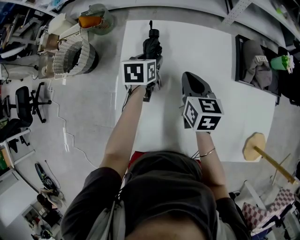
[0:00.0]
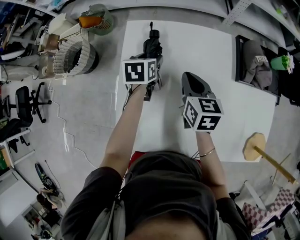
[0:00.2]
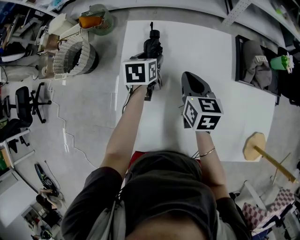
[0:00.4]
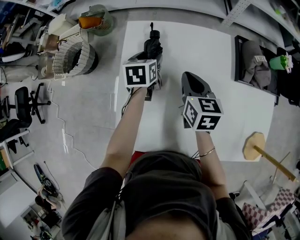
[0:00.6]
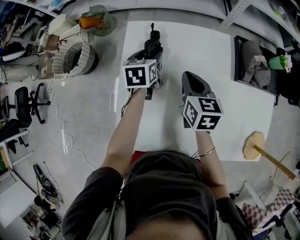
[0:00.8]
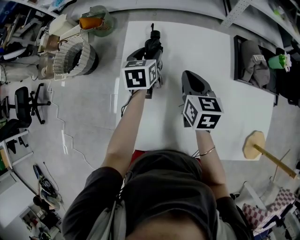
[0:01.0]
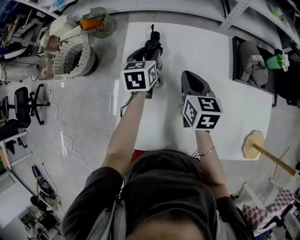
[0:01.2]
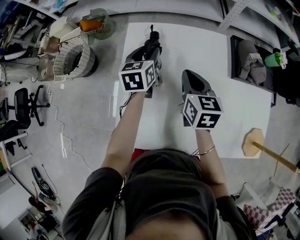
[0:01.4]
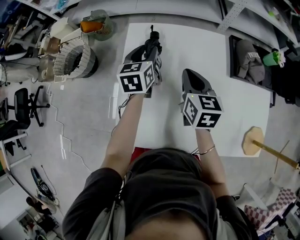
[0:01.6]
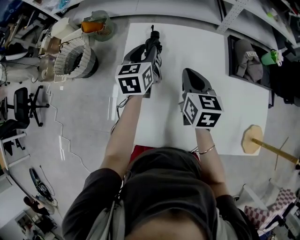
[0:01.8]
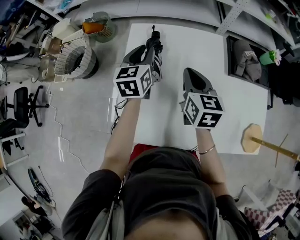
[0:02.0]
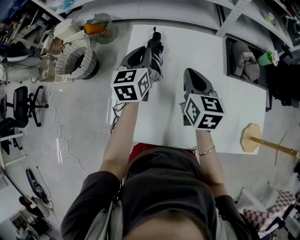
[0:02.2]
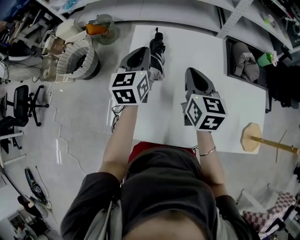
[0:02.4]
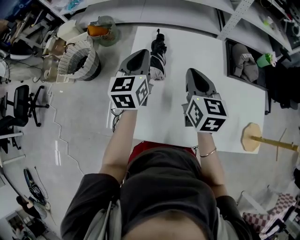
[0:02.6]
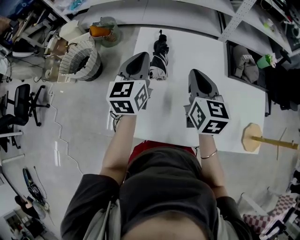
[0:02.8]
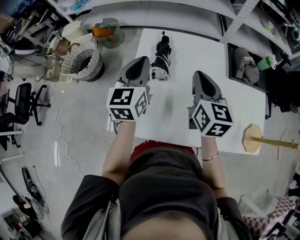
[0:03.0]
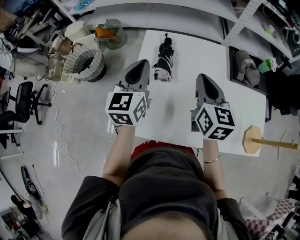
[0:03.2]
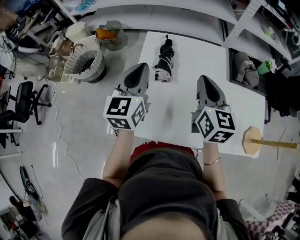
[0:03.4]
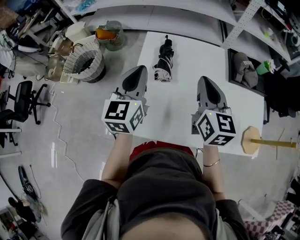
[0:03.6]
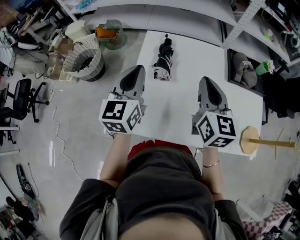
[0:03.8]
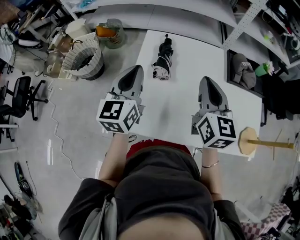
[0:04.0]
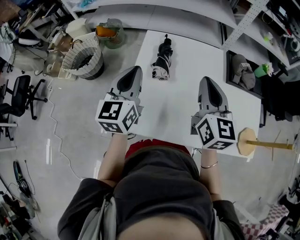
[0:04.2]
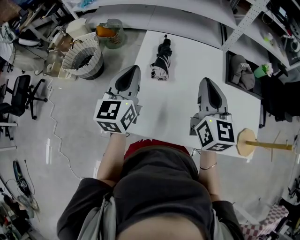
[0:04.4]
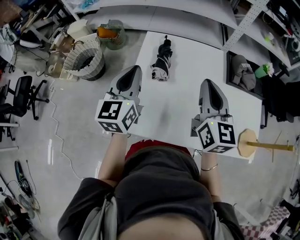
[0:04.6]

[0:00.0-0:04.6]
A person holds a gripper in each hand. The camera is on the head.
0:00.0 to 0:01.6: The left gripper moves upward, some 10 cm, and swivels roughly 20 degrees.
0:01.6 to 0:03.0: The left gripper moves backward and upward, about 20 cm, and closes up, while the right gripper heads upward and backward, covering approximately 10 cm.
0:03.0 to 0:04.6: The right gripper shifts approximately 5 cm upward, while the left gripper travels backward by approximately 5 cm.

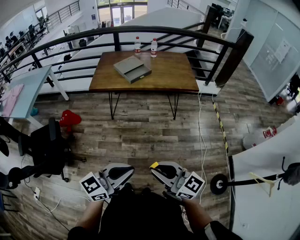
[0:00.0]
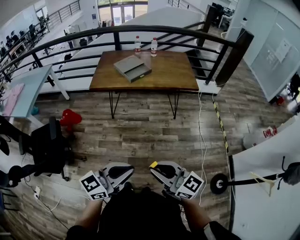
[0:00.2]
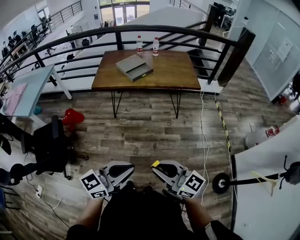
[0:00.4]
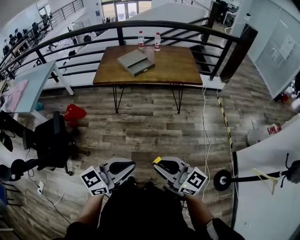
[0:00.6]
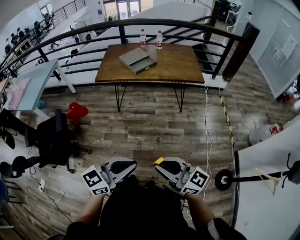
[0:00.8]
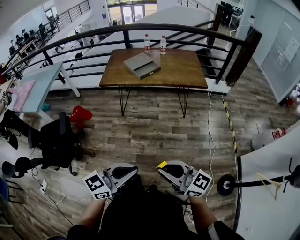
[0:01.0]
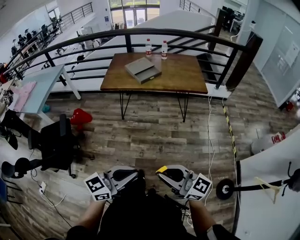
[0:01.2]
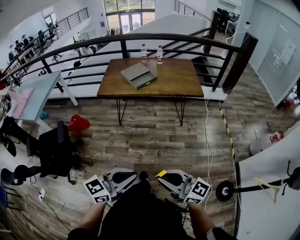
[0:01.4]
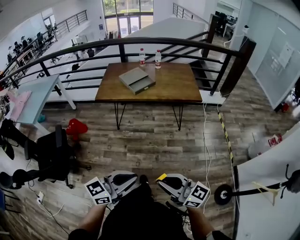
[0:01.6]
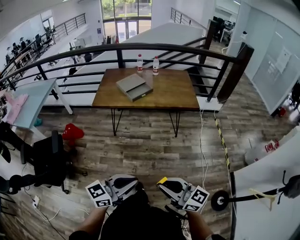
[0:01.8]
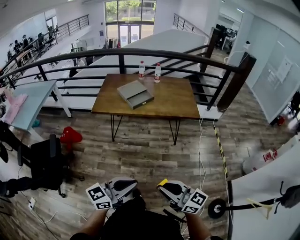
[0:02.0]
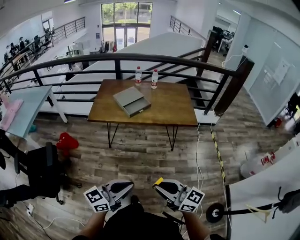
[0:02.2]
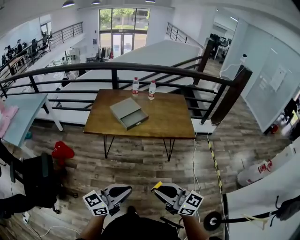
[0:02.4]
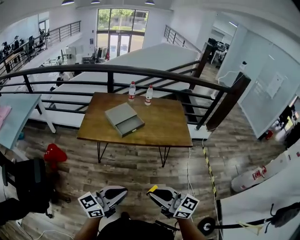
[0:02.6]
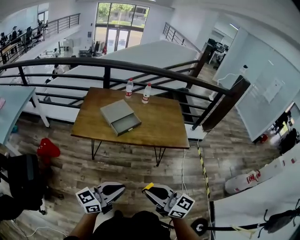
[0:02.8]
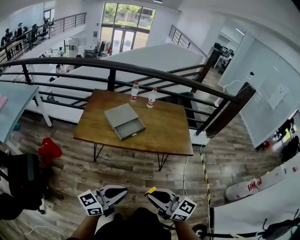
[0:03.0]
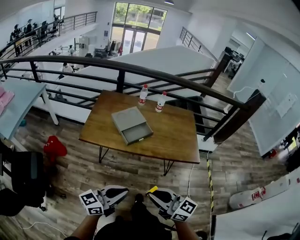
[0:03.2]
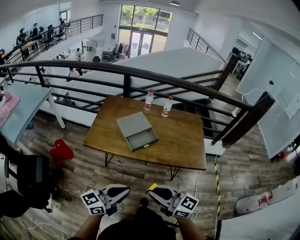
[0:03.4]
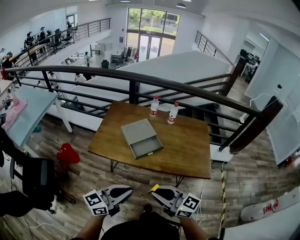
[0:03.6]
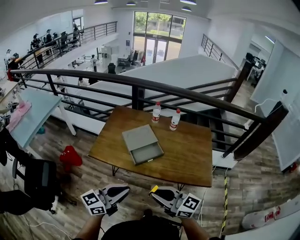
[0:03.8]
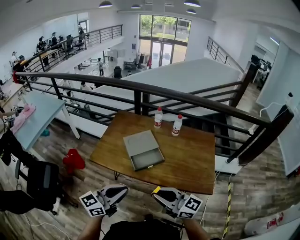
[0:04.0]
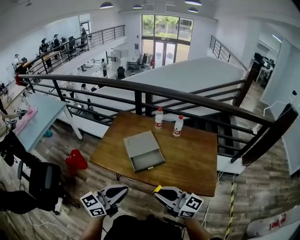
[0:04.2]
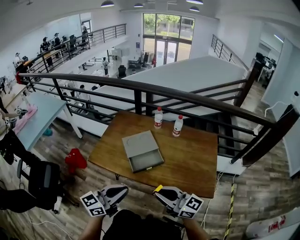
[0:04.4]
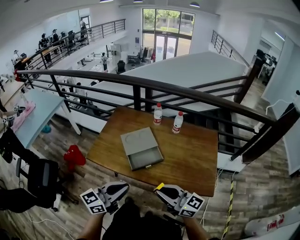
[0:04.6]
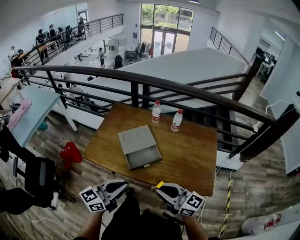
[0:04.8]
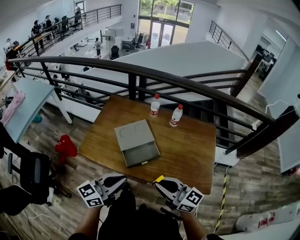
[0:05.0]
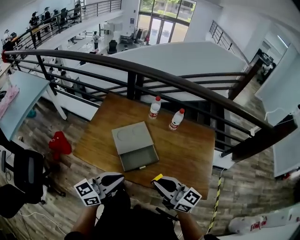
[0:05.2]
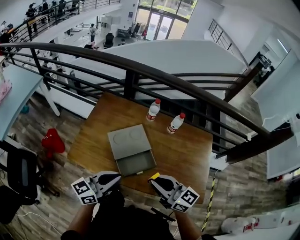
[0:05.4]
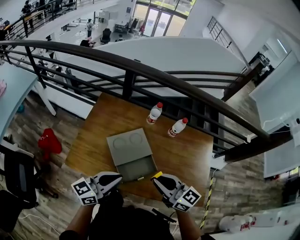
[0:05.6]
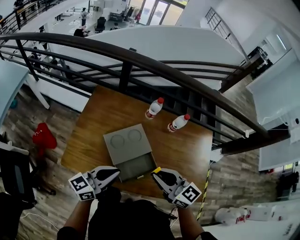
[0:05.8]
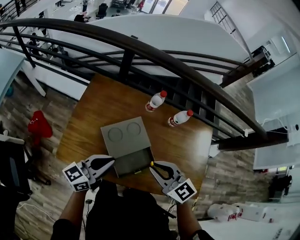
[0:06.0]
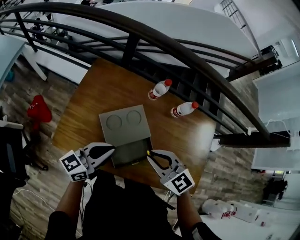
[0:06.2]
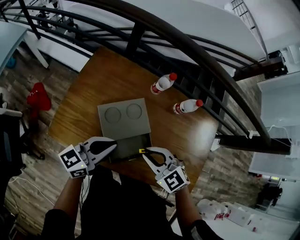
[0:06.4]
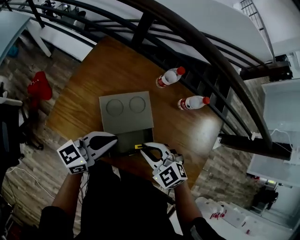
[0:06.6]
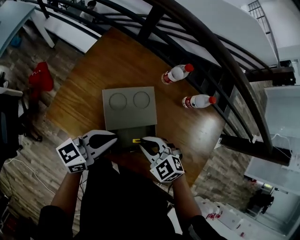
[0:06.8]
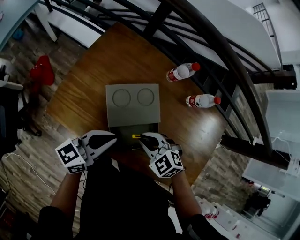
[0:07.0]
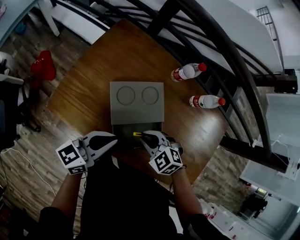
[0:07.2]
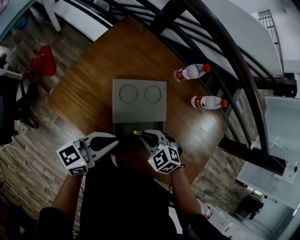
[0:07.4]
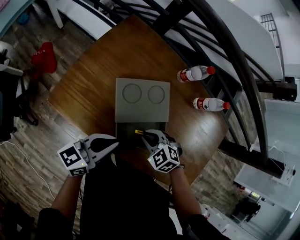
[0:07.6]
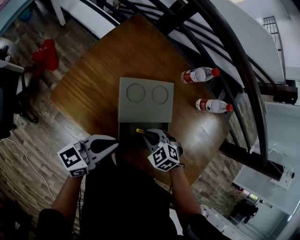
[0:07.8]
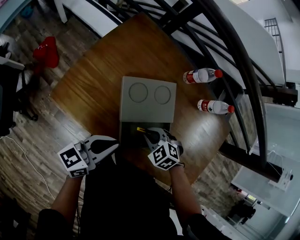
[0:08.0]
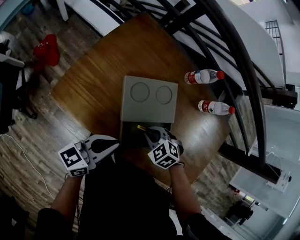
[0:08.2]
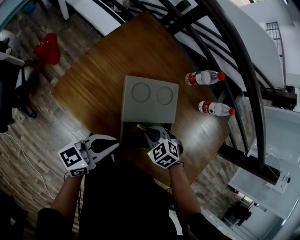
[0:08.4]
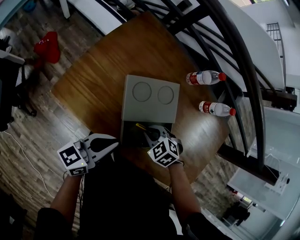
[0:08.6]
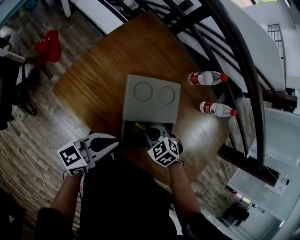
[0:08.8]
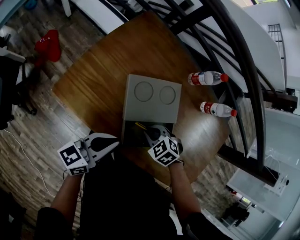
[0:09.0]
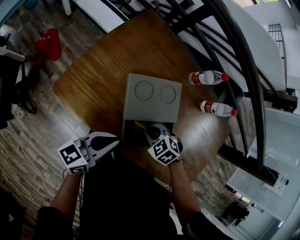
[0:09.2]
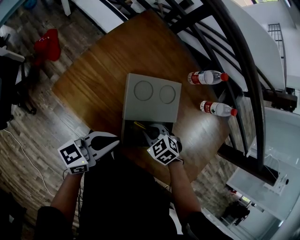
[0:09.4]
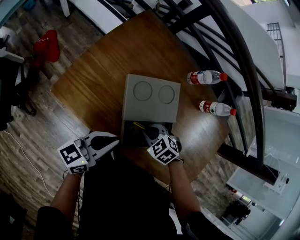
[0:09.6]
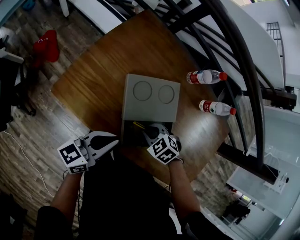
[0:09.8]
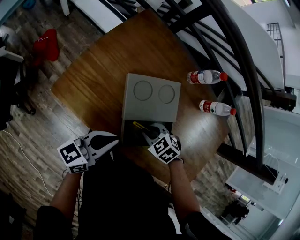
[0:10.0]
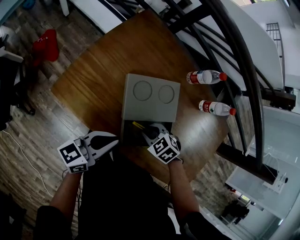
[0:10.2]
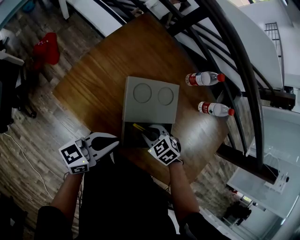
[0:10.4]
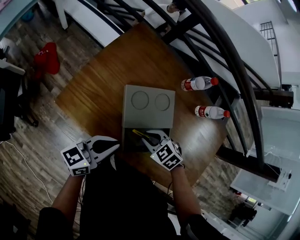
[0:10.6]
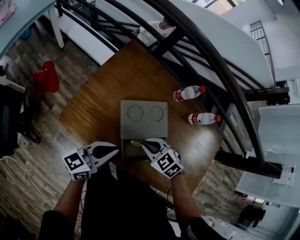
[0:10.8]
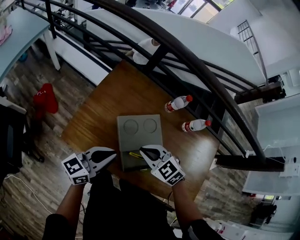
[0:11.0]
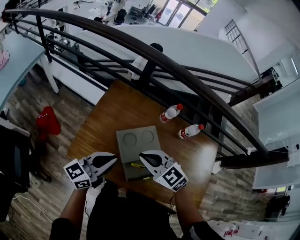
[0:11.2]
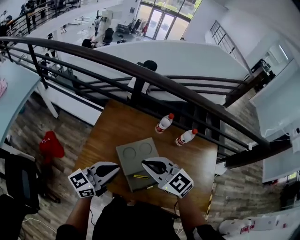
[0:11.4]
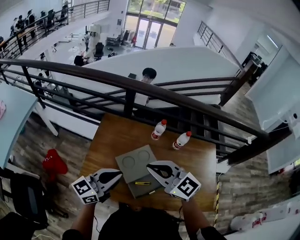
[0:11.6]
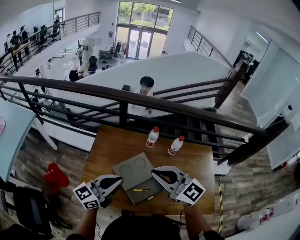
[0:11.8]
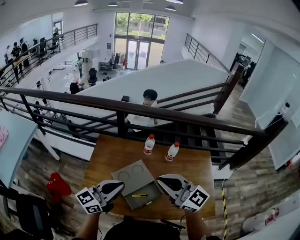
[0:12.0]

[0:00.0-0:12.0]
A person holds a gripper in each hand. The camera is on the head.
0:00.0 to 0:01.6: The grippers move only a little.
0:01.6 to 0:03.0: The two grippers go about 30 cm forward.
0:03.0 to 0:04.4: Both grippers move forward, some 25 cm. The left gripper turns by roughly 20 degrees.
0:04.4 to 0:06.0: The two grippers go approximately 30 cm forward. The right gripper points its fingers about 30 degrees further downward.
0:06.0 to 0:07.6: The left gripper goes roughly 10 cm downward and backward; the right gripper is displaced downward by about 20 cm, and tilts its fingers about 40 degrees downward.
0:07.6 to 0:10.4: The grippers make only small movements.
0:10.4 to 0:12.0: The right gripper moves upward, approximately 40 cm, angles its fingers upward, by approximately 70 degrees, and closes. The left gripper is displaced upward by about 25 cm, and rotates approximately 30 degrees.

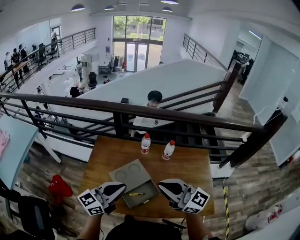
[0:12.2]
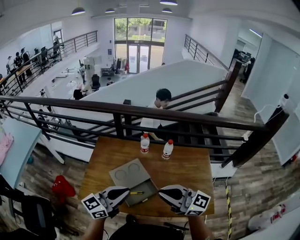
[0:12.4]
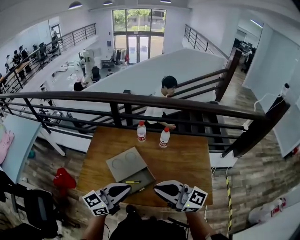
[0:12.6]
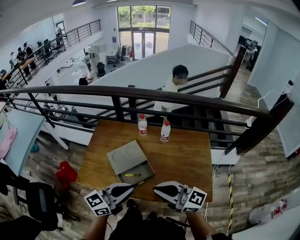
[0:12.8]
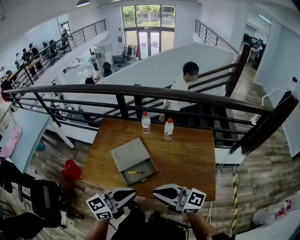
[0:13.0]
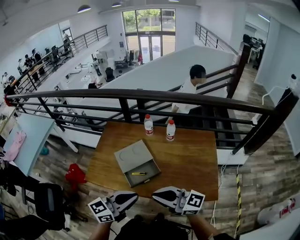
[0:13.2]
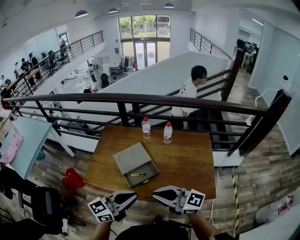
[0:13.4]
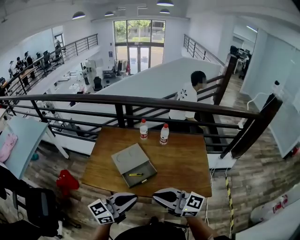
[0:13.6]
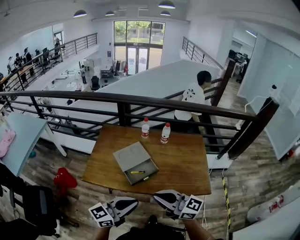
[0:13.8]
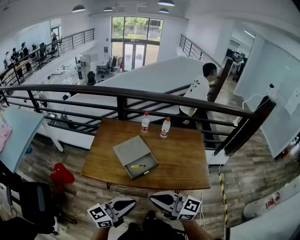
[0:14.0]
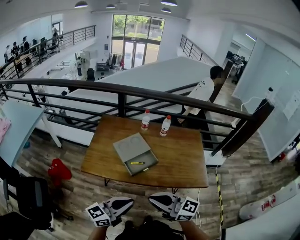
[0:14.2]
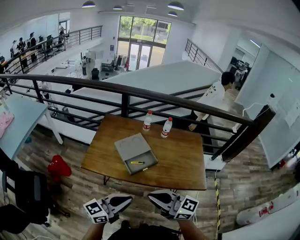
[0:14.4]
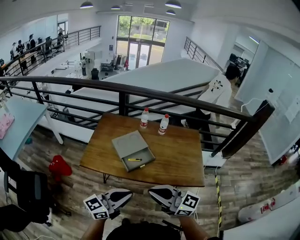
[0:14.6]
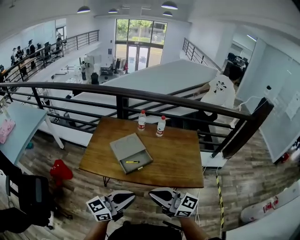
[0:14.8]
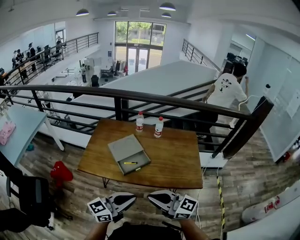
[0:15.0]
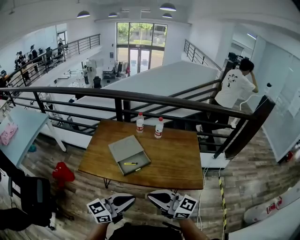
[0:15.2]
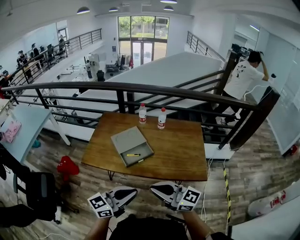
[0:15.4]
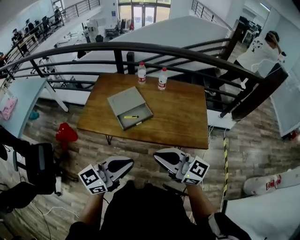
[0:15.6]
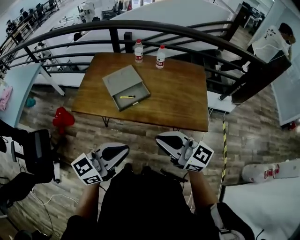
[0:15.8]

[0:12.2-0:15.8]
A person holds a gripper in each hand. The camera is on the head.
0:12.2 to 0:14.0: Both grippers move backward, about 25 cm.
0:14.0 to 0:15.8: Both grippers travel together to the right, some 10 cm.

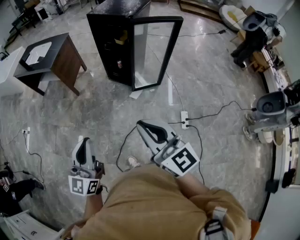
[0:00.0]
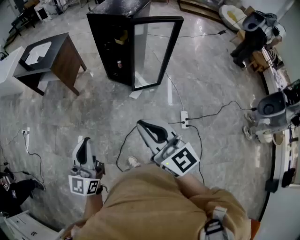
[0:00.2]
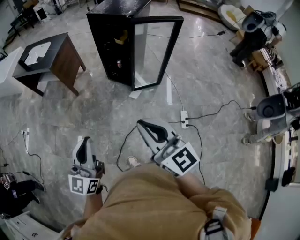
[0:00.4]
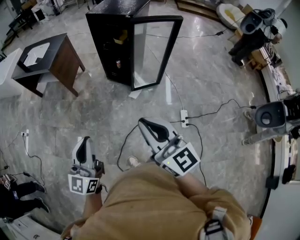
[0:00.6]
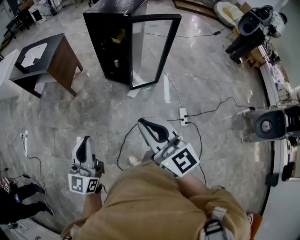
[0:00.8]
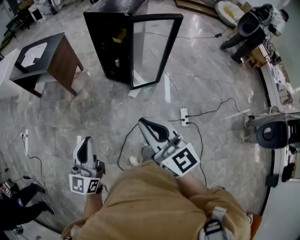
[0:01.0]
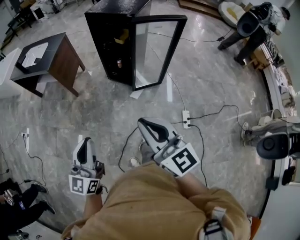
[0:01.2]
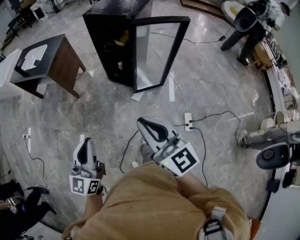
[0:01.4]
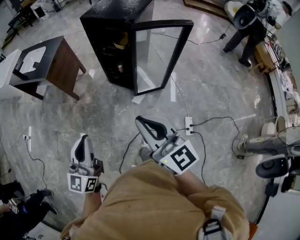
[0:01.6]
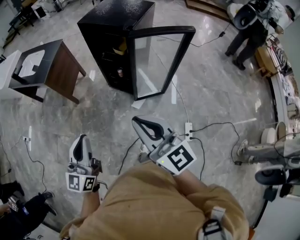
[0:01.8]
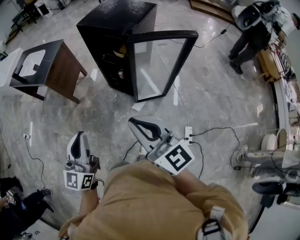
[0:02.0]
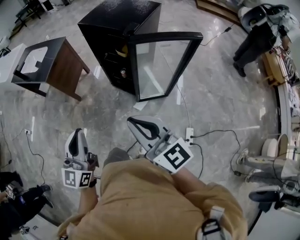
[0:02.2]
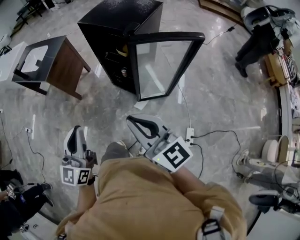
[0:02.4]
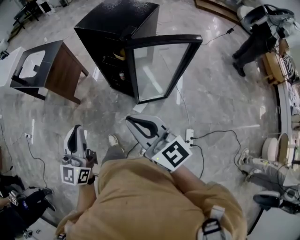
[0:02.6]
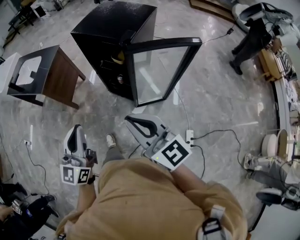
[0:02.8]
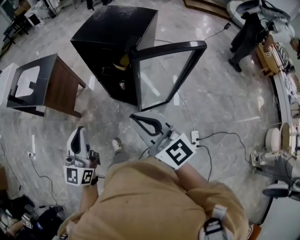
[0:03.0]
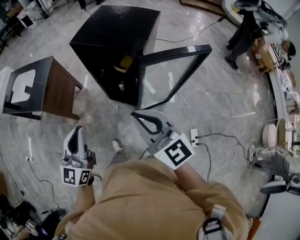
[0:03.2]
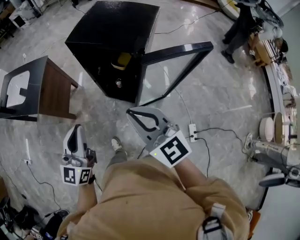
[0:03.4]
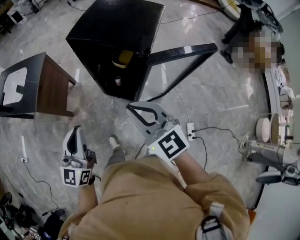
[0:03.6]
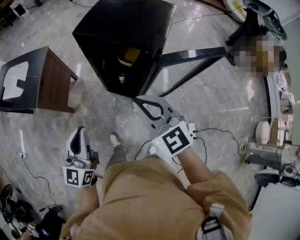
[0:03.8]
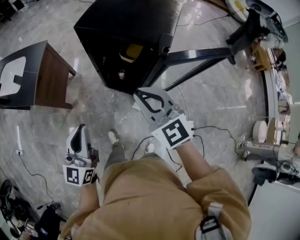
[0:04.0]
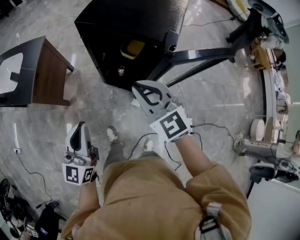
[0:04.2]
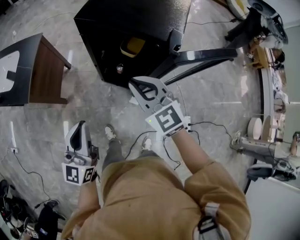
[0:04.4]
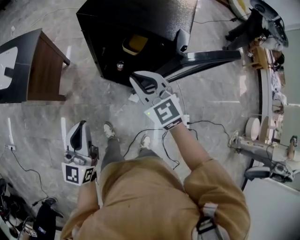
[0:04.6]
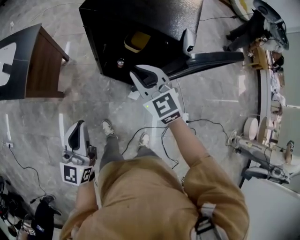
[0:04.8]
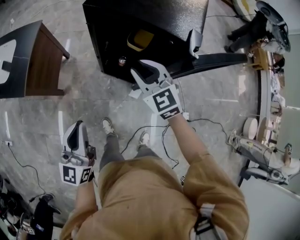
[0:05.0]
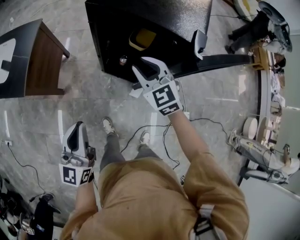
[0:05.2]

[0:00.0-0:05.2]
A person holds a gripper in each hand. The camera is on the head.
0:00.0 to 0:01.8: Both grippers travel together forward, approximately 25 cm.
0:01.8 to 0:03.4: Both grippers travel together forward, about 30 cm. The right gripper swivels some 20 degrees.
0:03.4 to 0:05.2: The left gripper is displaced downward, to the left and forward by about 20 cm, while the right gripper travels forward and downward by some 30 cm, rotates roughly 20 degrees, and opens up.
